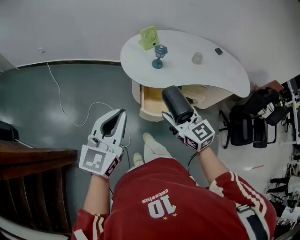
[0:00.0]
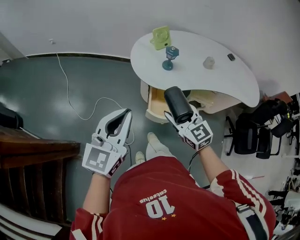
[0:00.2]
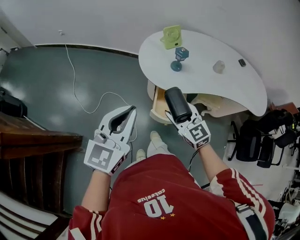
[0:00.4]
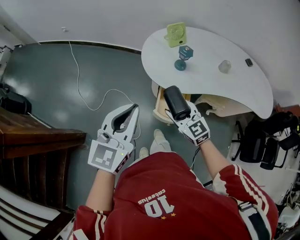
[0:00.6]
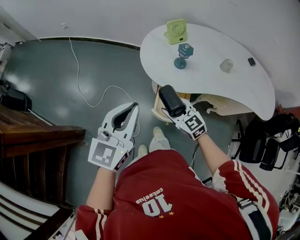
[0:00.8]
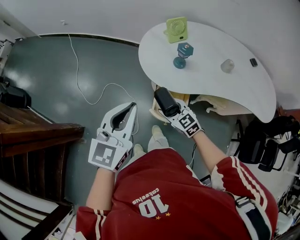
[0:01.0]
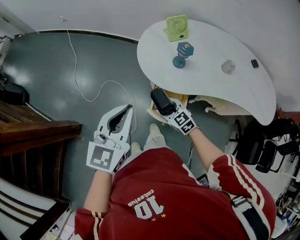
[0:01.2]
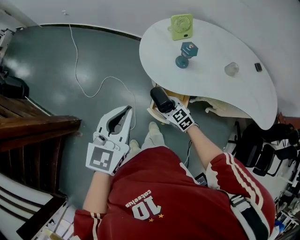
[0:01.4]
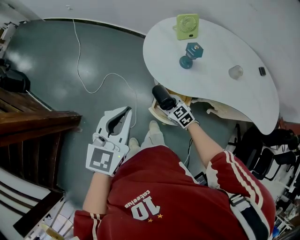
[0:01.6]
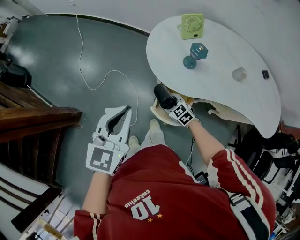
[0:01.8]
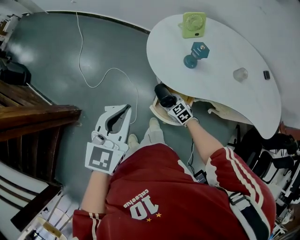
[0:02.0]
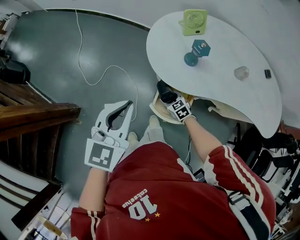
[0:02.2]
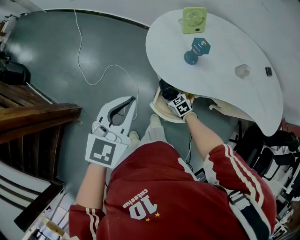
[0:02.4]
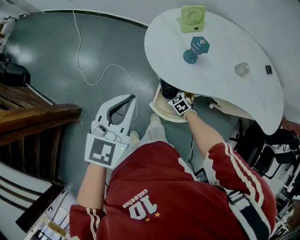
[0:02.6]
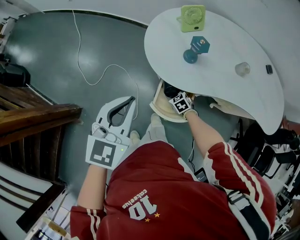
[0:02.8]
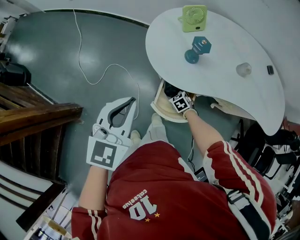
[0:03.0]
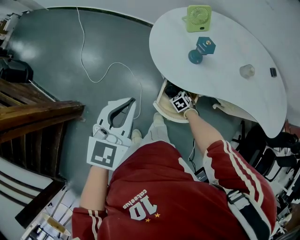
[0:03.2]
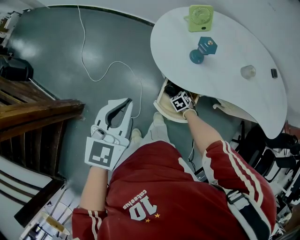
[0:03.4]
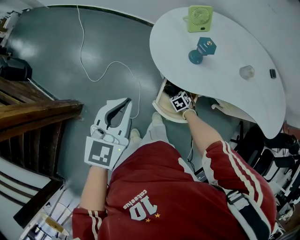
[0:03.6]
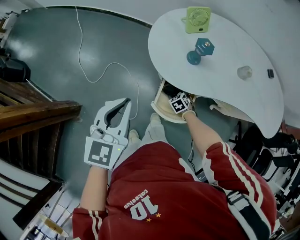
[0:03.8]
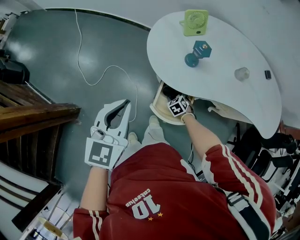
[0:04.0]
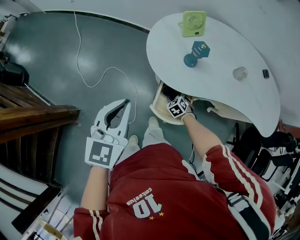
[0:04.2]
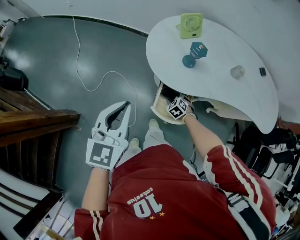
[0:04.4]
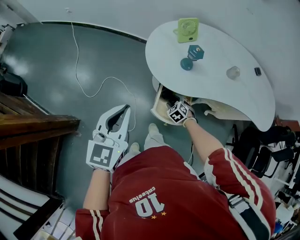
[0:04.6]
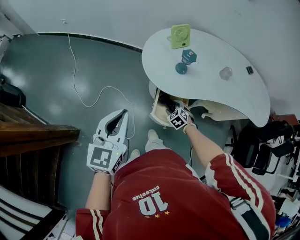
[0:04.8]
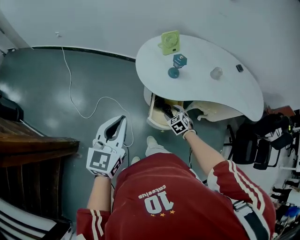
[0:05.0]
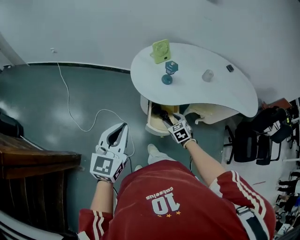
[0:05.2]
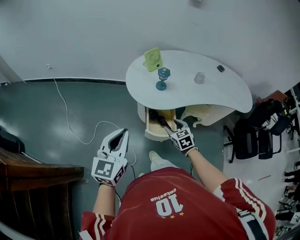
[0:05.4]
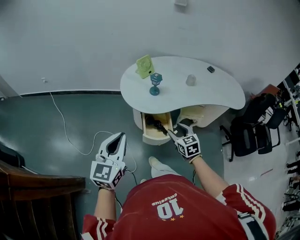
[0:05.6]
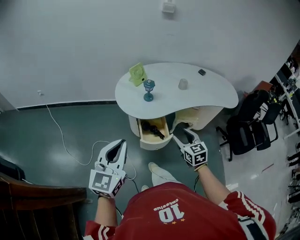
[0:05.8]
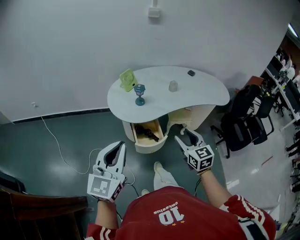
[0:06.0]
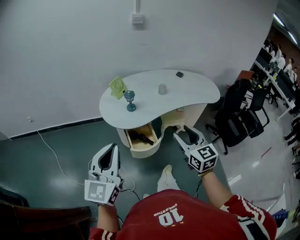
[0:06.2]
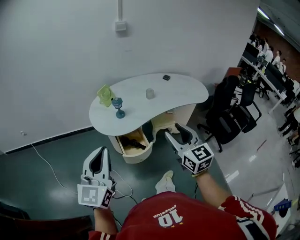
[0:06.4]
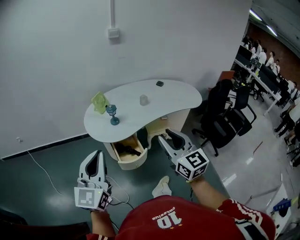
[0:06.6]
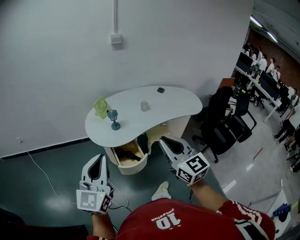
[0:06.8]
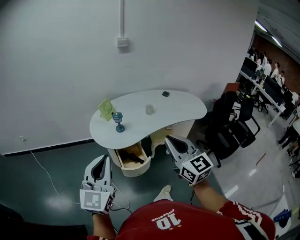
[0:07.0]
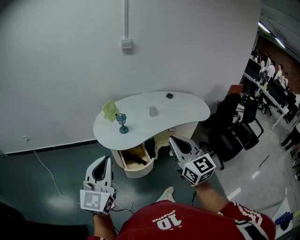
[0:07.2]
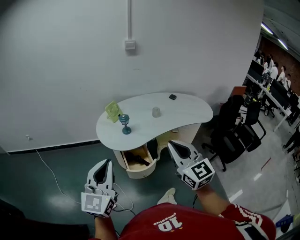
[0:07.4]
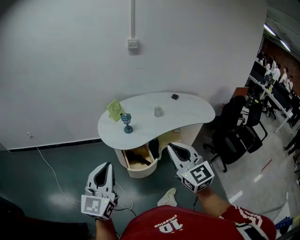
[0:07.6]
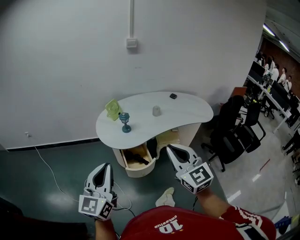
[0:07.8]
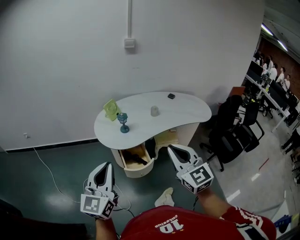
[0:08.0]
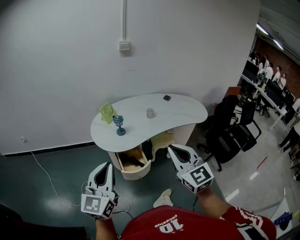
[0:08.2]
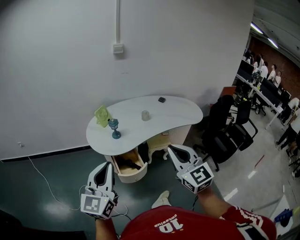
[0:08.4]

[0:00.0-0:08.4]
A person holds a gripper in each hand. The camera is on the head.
0:00.0 to 0:01.4: The left gripper shifts approximately 15 cm forward, downward and to the right, and swivels approximately 20 degrees. Meanwhile the right gripper is displaced downward and forward by about 30 cm, and swivels about 30 degrees.
0:01.4 to 0:02.8: The right gripper moves downward, about 15 cm, and turns by some 20 degrees.
0:02.8 to 0:04.2: There are only small adjustments of the grippers.
0:04.2 to 0:05.6: The left gripper travels backward and upward by about 10 cm, and turns by approximately 20 degrees. The right gripper heads upward and backward, covering some 35 cm, and changes its angle by roughly 50 degrees.
0:05.6 to 0:07.0: The right gripper shifts about 30 cm upward, angles its fingers upward, by roughly 40 degrees, and closes its fingers. Meanwhile the left gripper travels upward and to the right by about 15 cm, and swivels approximately 20 degrees.
0:07.0 to 0:08.4: The grippers stay close to where they were, moving slightly.

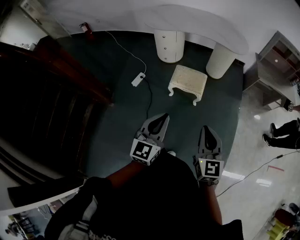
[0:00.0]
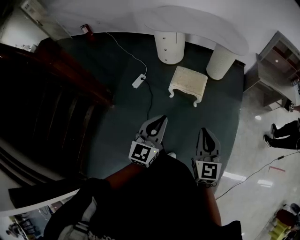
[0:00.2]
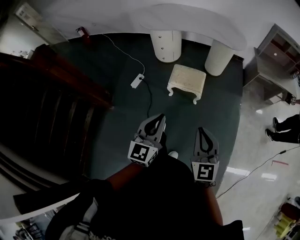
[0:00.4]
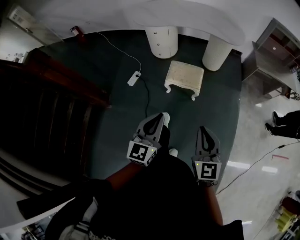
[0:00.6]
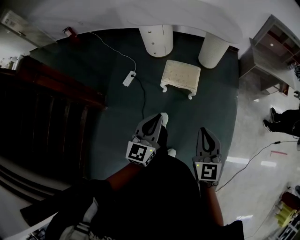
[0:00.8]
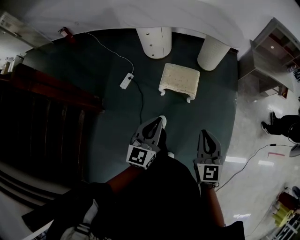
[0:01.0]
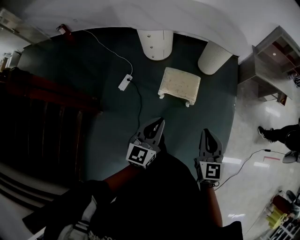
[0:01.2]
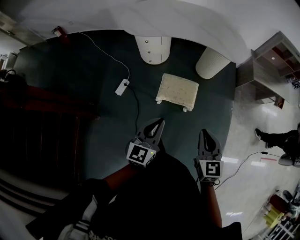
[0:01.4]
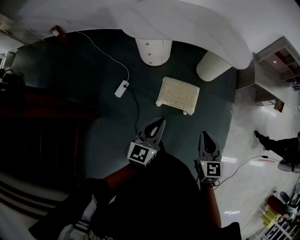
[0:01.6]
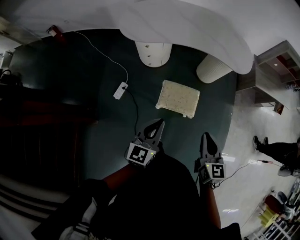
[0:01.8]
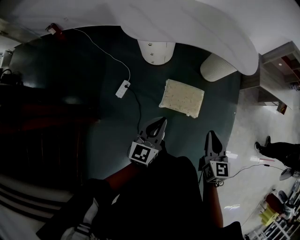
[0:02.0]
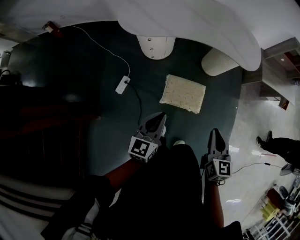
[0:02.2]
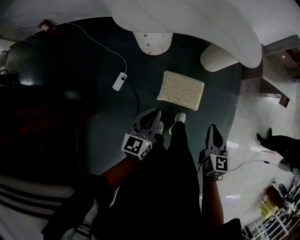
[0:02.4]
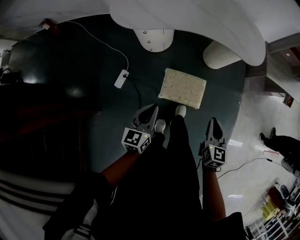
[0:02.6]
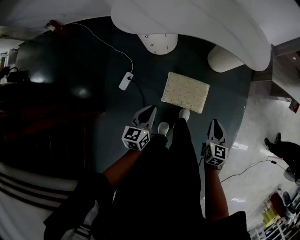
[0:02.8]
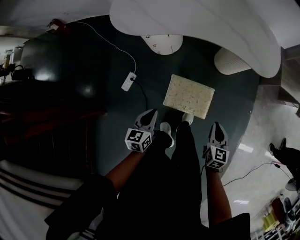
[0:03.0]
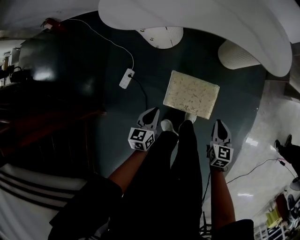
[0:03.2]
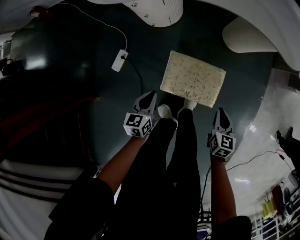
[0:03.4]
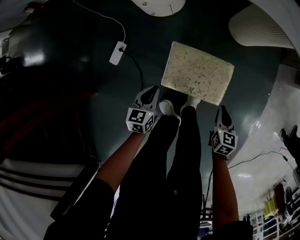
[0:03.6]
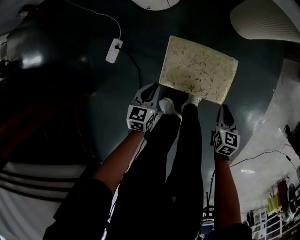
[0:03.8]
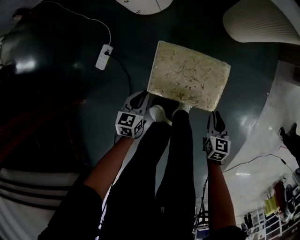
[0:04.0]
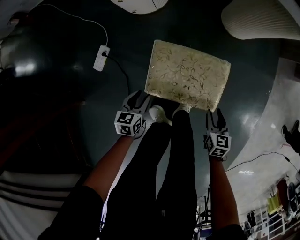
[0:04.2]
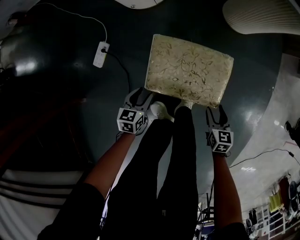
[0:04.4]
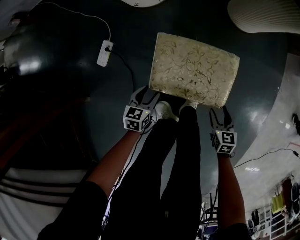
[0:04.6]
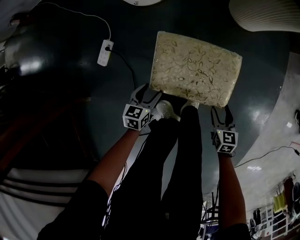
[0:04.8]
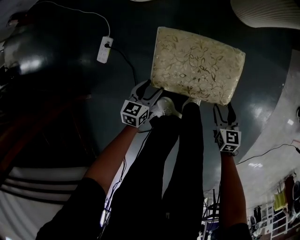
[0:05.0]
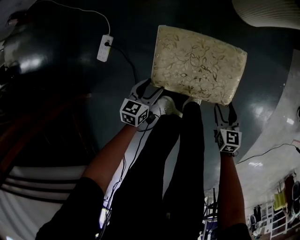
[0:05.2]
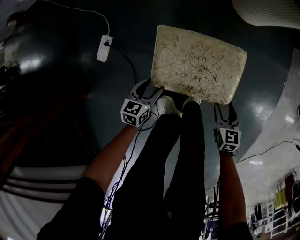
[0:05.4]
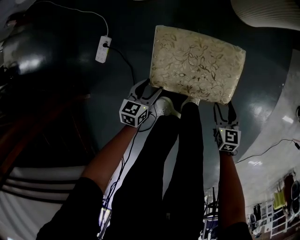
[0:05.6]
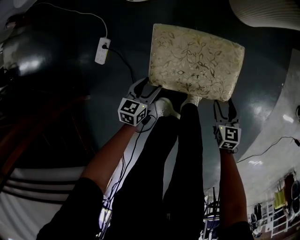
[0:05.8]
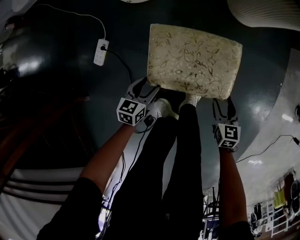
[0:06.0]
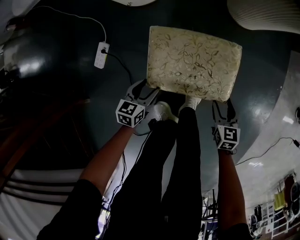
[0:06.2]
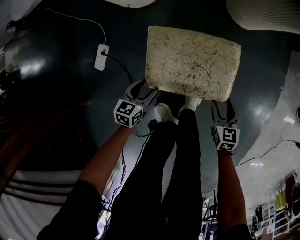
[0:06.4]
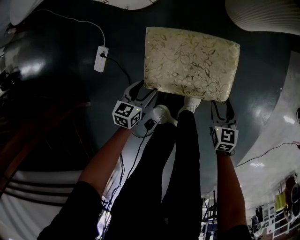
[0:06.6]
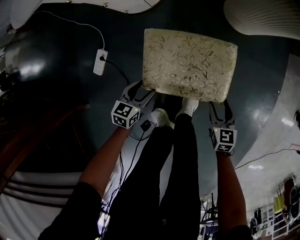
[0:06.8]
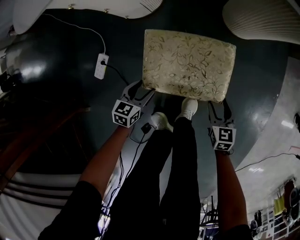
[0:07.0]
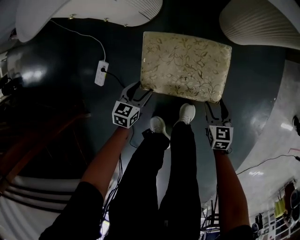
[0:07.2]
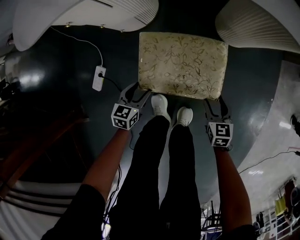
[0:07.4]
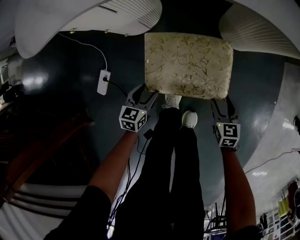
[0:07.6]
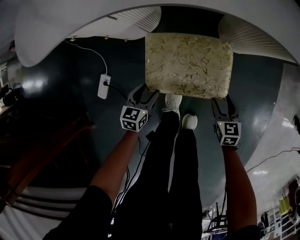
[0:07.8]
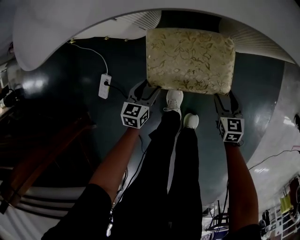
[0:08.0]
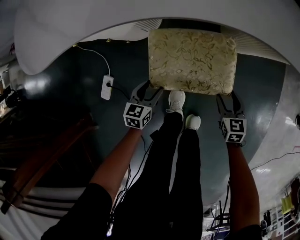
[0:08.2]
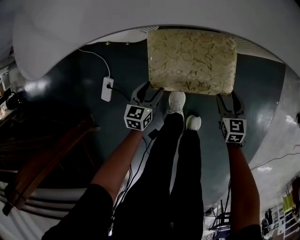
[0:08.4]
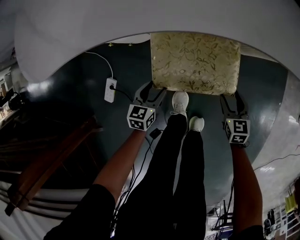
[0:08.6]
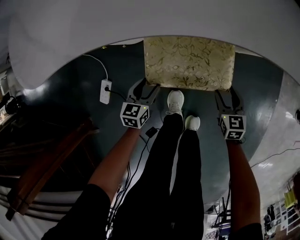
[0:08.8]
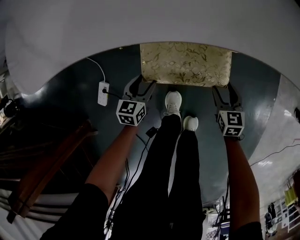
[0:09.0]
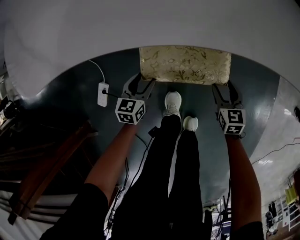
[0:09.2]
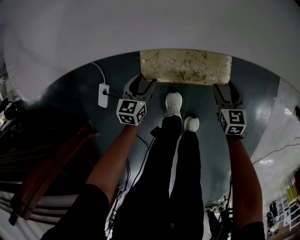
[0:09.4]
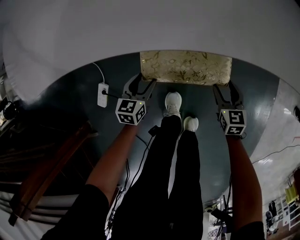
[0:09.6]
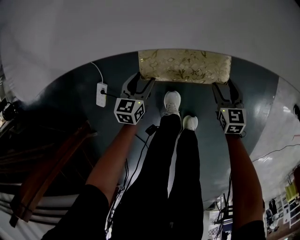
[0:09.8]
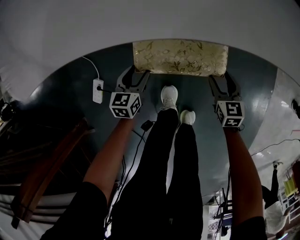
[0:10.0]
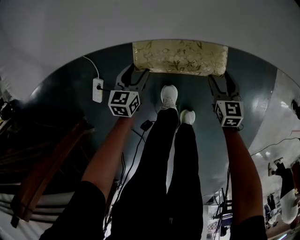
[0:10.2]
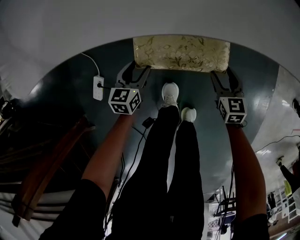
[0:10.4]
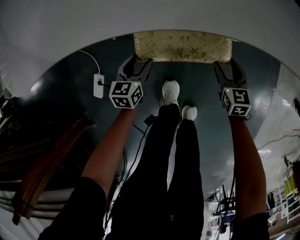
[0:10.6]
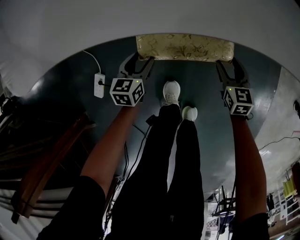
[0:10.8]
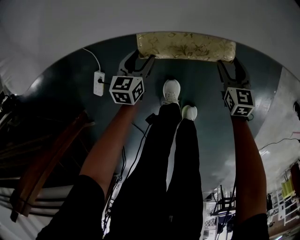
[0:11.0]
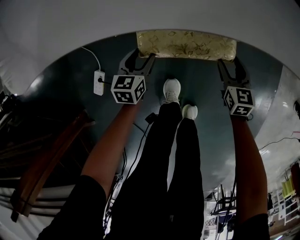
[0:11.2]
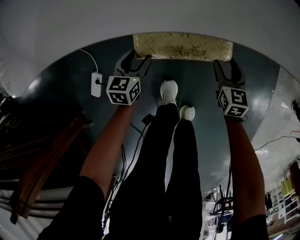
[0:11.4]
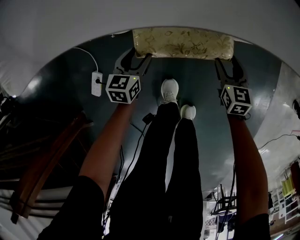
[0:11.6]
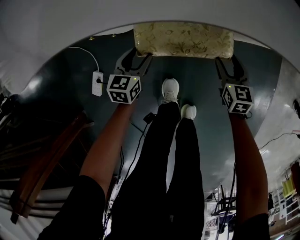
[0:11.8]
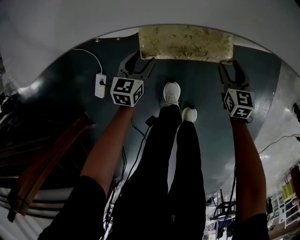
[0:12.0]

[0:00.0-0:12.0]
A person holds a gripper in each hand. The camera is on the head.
0:00.0 to 0:01.6: Both grippers travel together forward, approximately 35 cm.
0:01.6 to 0:03.0: Both grippers move downward and forward, approximately 30 cm. The left gripper changes its angle by some 20 degrees.
0:03.0 to 0:04.4: Both grippers travel together downward, approximately 50 cm. The left gripper opens up; the right gripper changes its angle by approximately 20 degrees, and opens.
0:04.4 to 0:09.0: There are only small adjustments of the grippers.
0:09.0 to 0:10.4: Both grippers stay about where they are.
0:10.4 to 0:12.0: The grippers move only a little.

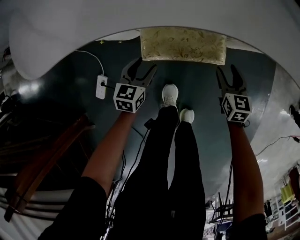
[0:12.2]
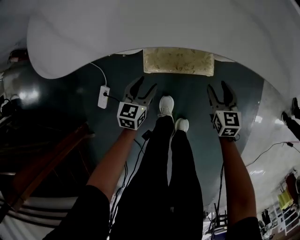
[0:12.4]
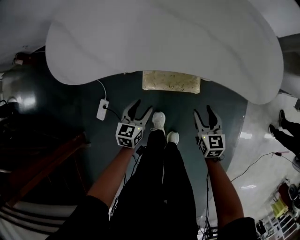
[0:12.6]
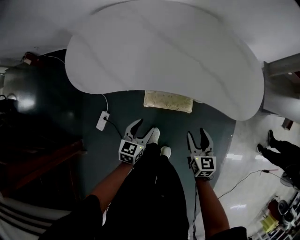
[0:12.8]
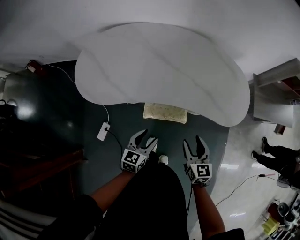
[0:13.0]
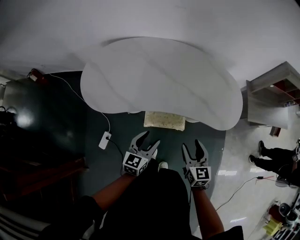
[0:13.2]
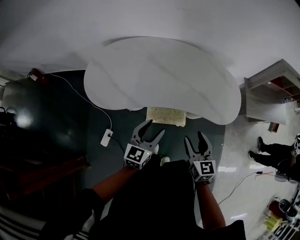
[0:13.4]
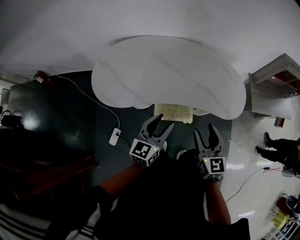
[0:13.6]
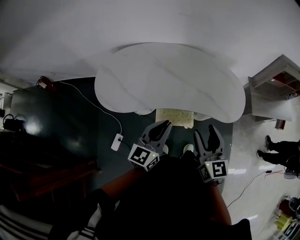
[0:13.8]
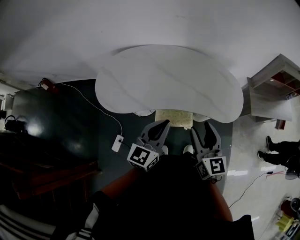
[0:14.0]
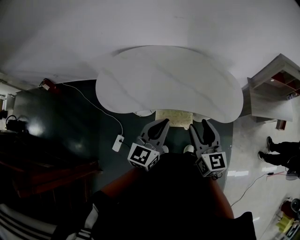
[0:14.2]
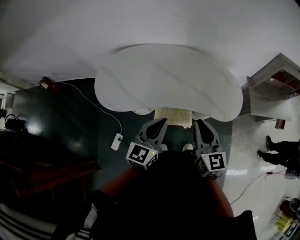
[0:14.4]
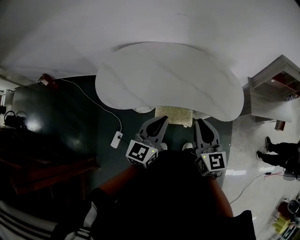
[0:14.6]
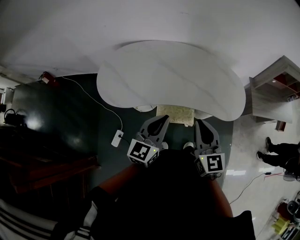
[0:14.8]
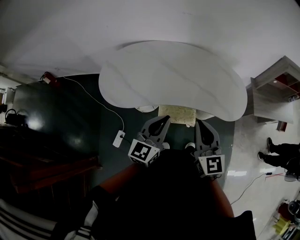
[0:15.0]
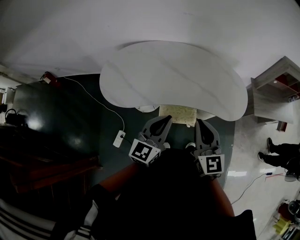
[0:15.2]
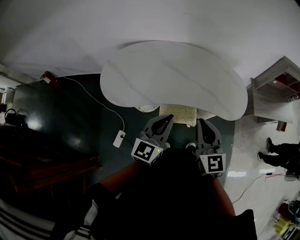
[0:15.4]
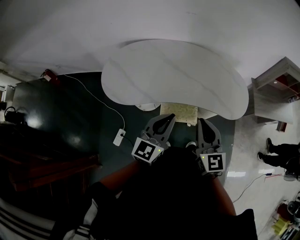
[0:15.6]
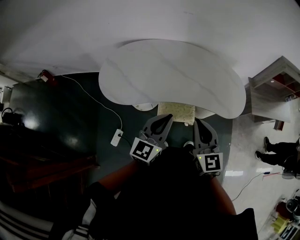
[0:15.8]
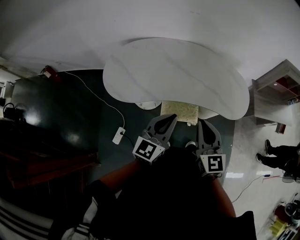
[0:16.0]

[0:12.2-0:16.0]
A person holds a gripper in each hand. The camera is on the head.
0:12.2 to 0:13.4: Both grippers travel together upward, some 60 cm. The left gripper changes its angle by roughly 30 degrees.
0:13.4 to 0:14.8: The two grippers go approximately 10 cm upward. The right gripper closes up, while the left gripper closes its fingers.
0:14.8 to 0:16.0: The grippers move only a little.
